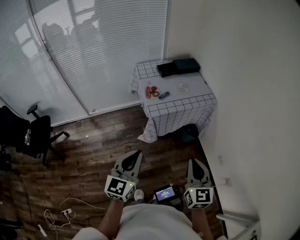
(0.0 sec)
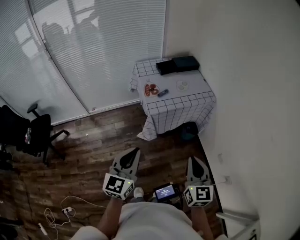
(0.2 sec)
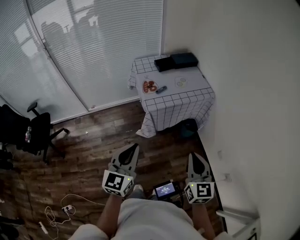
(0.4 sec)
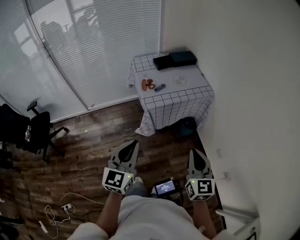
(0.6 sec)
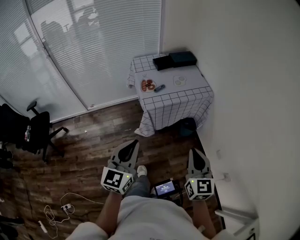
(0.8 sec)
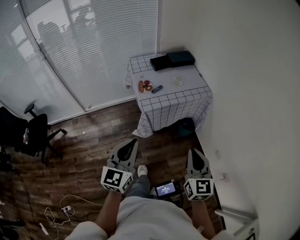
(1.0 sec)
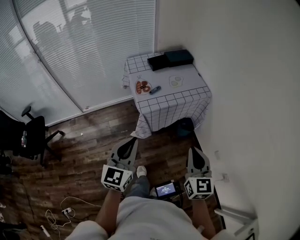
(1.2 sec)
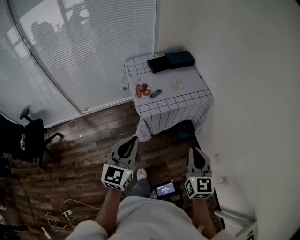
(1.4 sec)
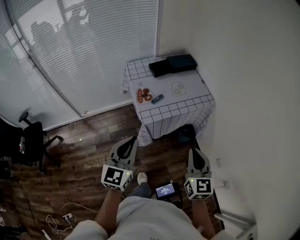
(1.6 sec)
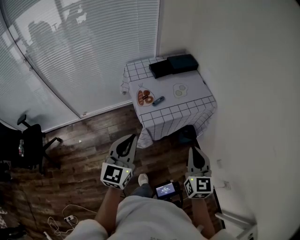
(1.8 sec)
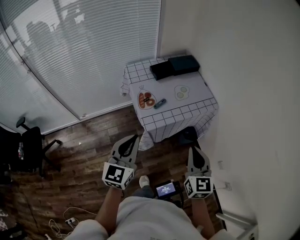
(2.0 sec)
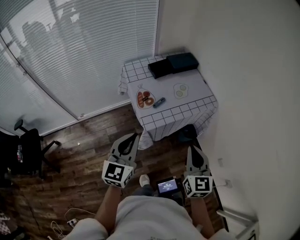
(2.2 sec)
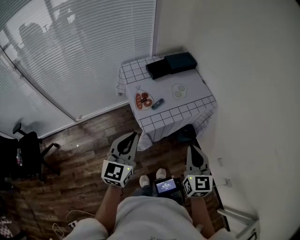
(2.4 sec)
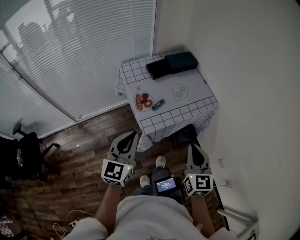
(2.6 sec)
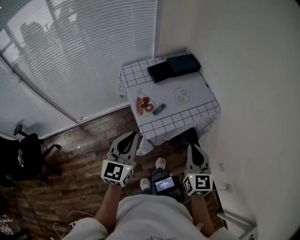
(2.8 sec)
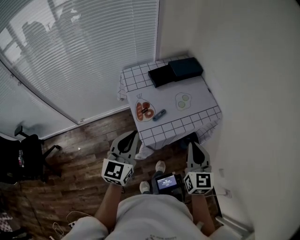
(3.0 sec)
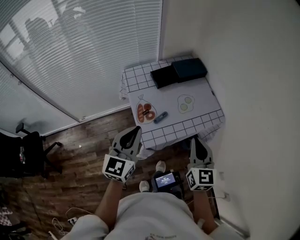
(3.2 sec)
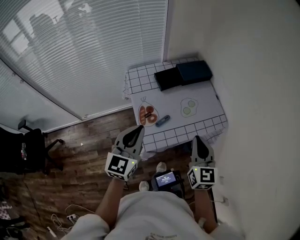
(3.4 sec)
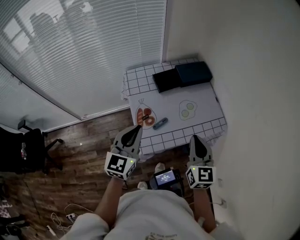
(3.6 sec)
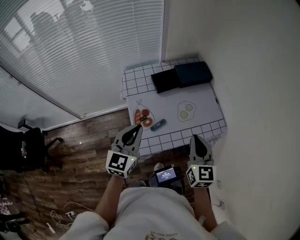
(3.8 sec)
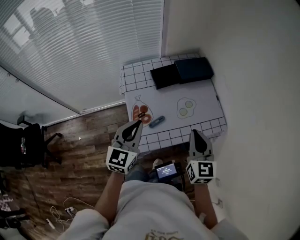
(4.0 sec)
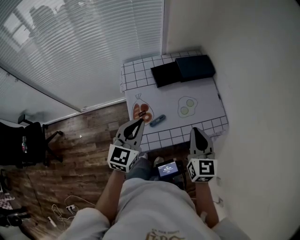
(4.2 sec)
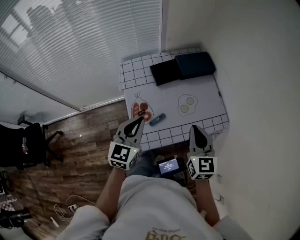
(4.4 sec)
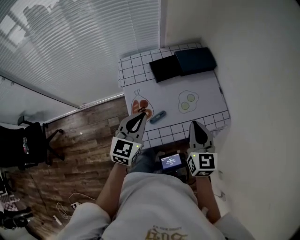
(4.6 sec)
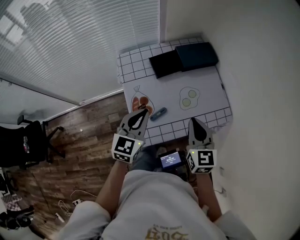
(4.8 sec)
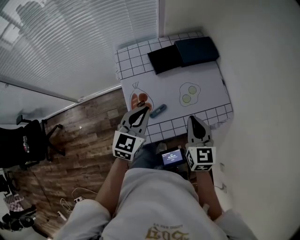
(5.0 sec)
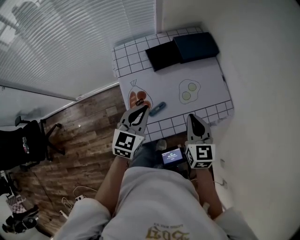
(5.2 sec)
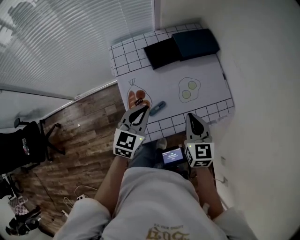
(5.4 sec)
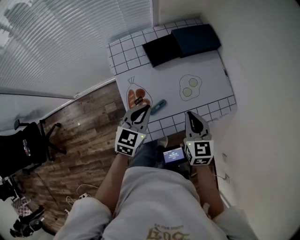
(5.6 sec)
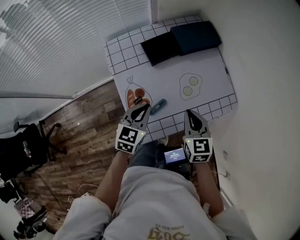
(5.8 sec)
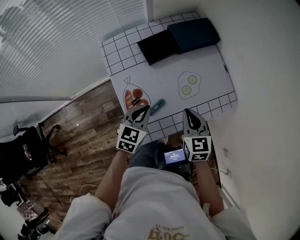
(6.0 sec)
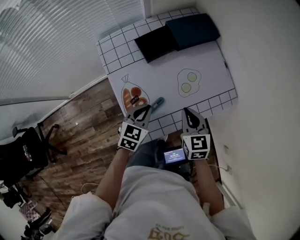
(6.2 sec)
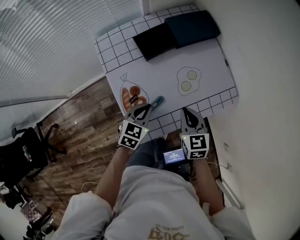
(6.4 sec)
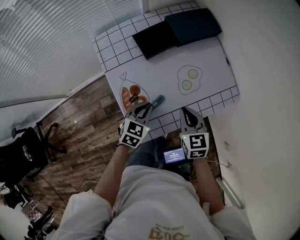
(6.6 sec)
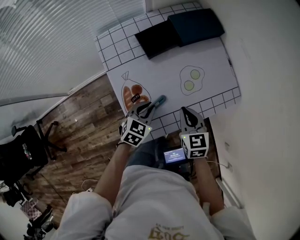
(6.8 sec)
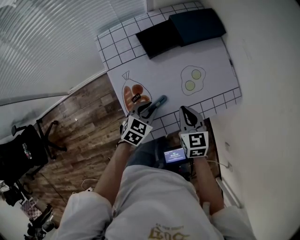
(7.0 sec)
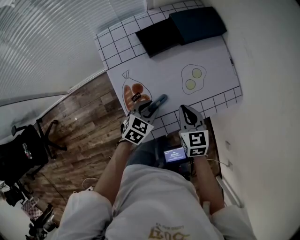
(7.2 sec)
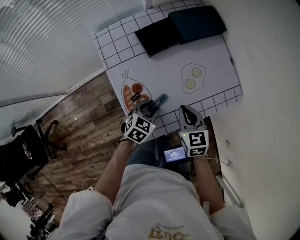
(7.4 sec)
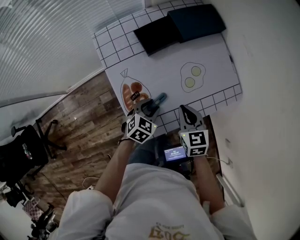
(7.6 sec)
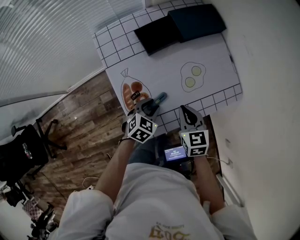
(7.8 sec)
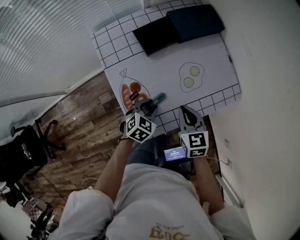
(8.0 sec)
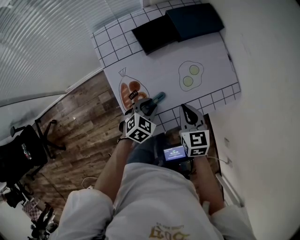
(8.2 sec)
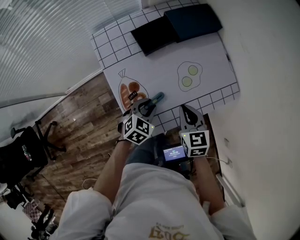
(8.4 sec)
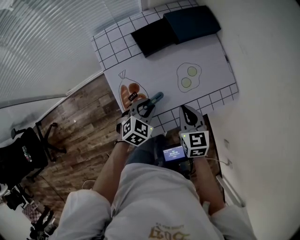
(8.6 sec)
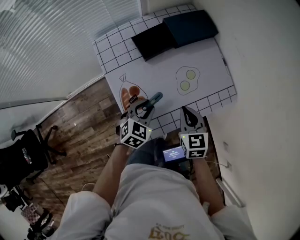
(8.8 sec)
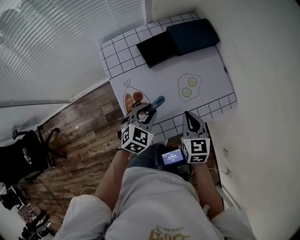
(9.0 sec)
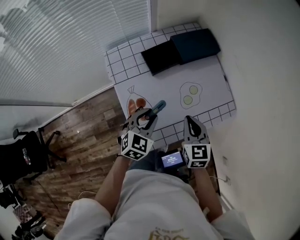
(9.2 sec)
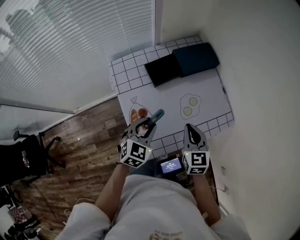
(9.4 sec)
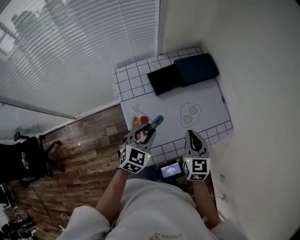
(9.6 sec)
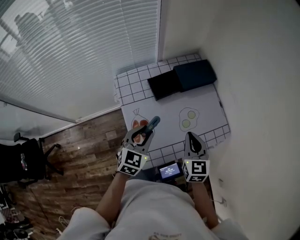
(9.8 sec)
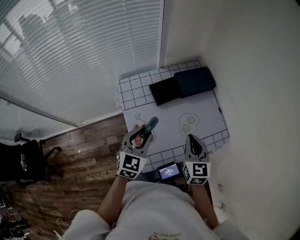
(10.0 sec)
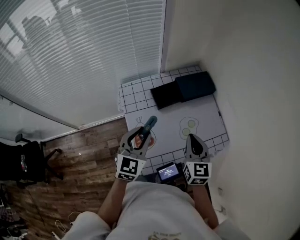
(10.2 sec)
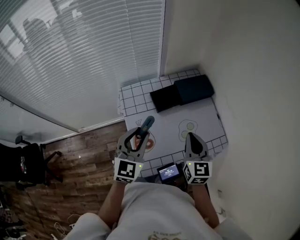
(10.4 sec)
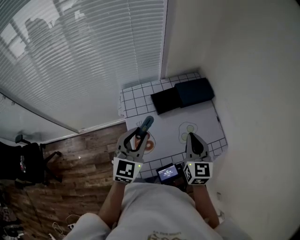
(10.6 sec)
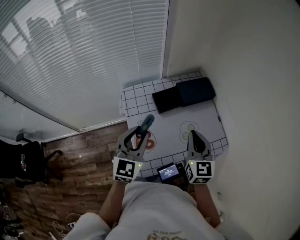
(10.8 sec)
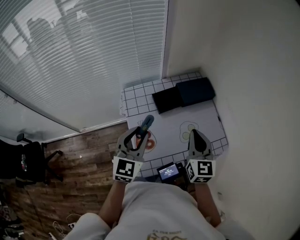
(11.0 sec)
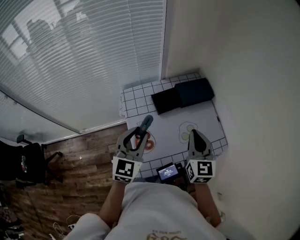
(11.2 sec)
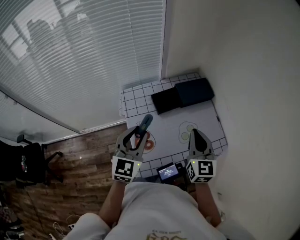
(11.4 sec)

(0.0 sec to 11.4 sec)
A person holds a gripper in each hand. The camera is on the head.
0.0 sec - 1.4 sec: Both grippers travel together forward, approximately 10 cm.
1.4 sec - 2.8 sec: Both grippers travel together forward and to the left, about 20 cm.
2.8 sec - 4.2 sec: Both grippers move forward, roughly 20 cm.
4.2 sec - 5.6 sec: The right gripper moves downward, some 10 cm. Meanwhile the left gripper travels downward and forward by roughly 15 cm.
5.6 sec - 7.2 sec: The right gripper heads downward, covering approximately 10 cm, while the left gripper is displaced downward by approximately 15 cm, changes its angle by roughly 20 degrees, and opens up.
7.2 sec - 8.6 sec: The grippers move only a little.
8.6 sec - 10.0 sec: Both grippers travel together upward, about 15 cm. The left gripper swivels some 30 degrees.
10.0 sec - 11.4 sec: Both grippers travel together upward, about 10 cm.

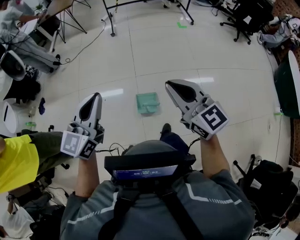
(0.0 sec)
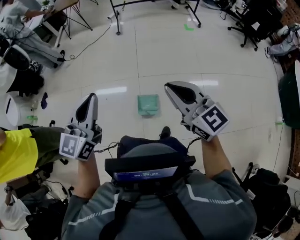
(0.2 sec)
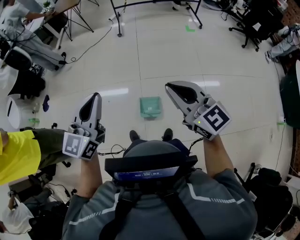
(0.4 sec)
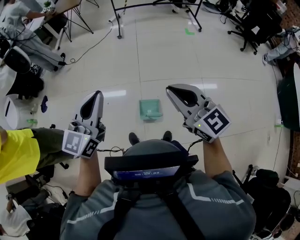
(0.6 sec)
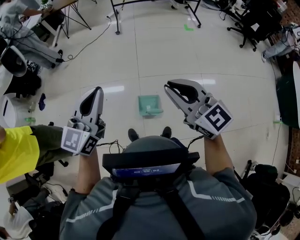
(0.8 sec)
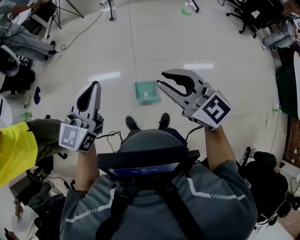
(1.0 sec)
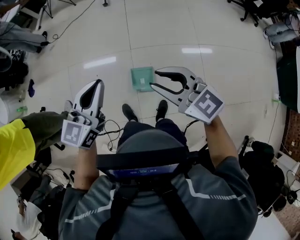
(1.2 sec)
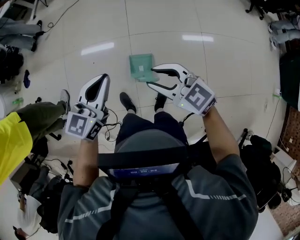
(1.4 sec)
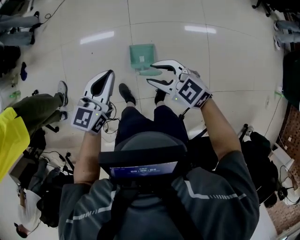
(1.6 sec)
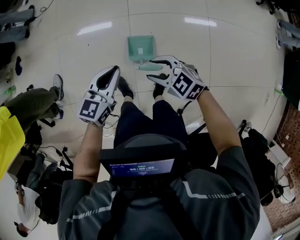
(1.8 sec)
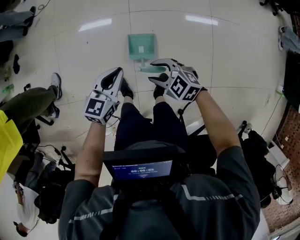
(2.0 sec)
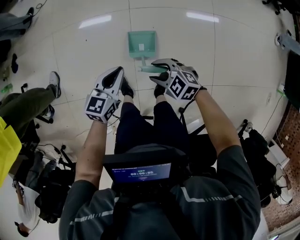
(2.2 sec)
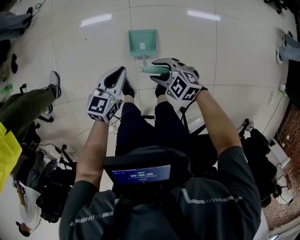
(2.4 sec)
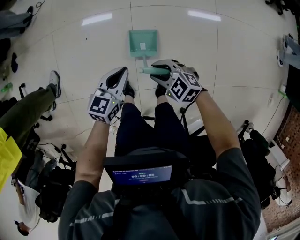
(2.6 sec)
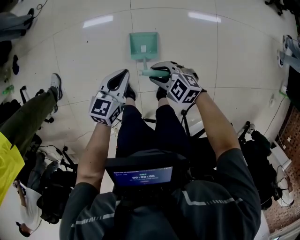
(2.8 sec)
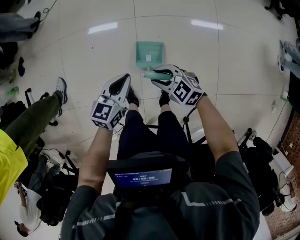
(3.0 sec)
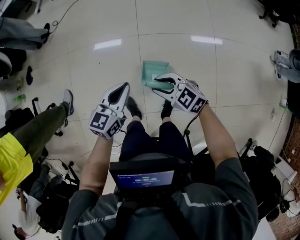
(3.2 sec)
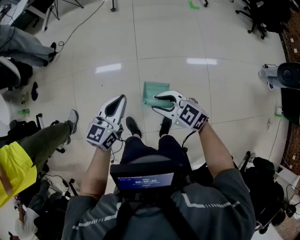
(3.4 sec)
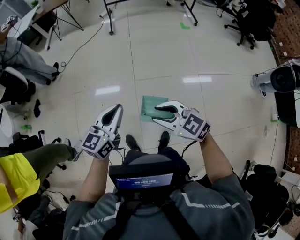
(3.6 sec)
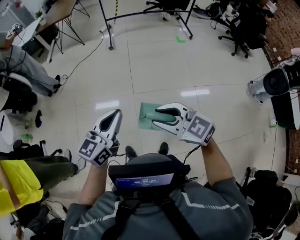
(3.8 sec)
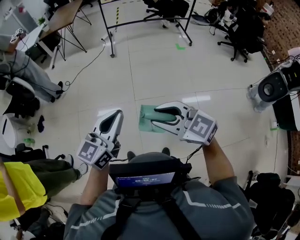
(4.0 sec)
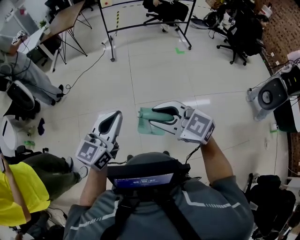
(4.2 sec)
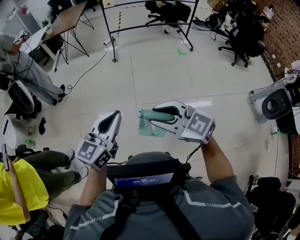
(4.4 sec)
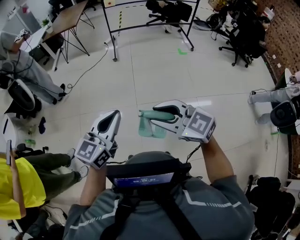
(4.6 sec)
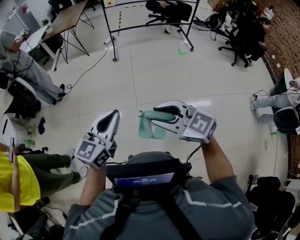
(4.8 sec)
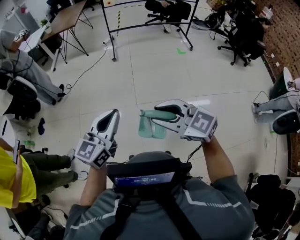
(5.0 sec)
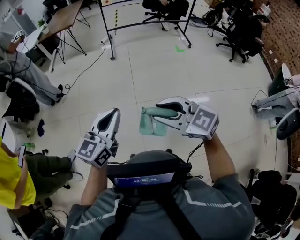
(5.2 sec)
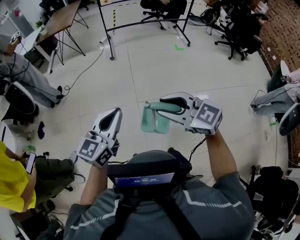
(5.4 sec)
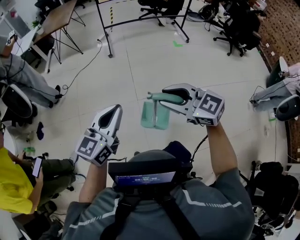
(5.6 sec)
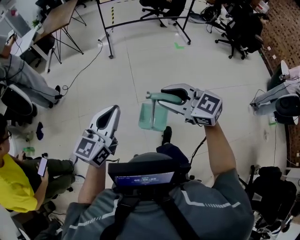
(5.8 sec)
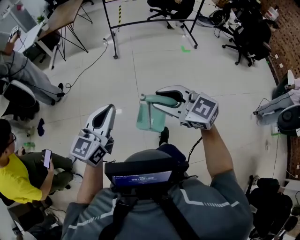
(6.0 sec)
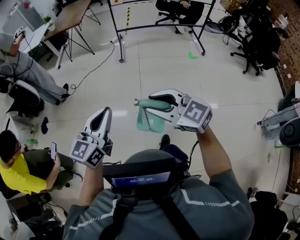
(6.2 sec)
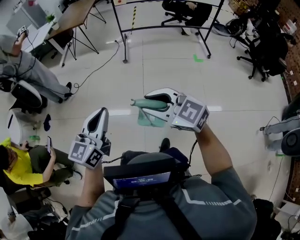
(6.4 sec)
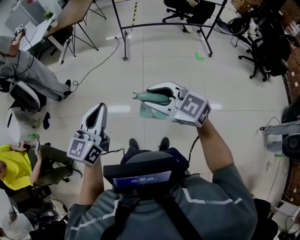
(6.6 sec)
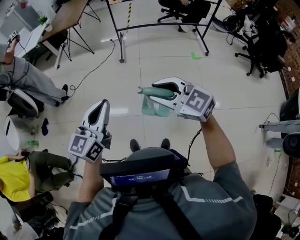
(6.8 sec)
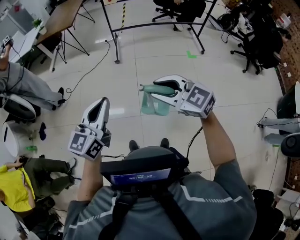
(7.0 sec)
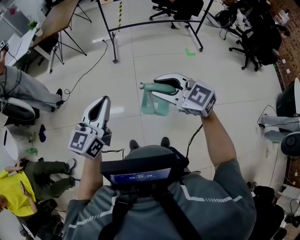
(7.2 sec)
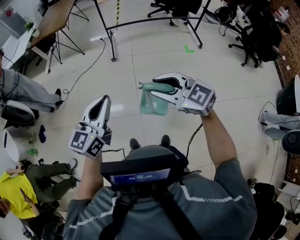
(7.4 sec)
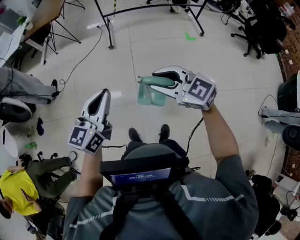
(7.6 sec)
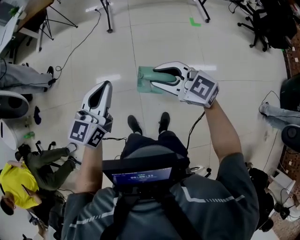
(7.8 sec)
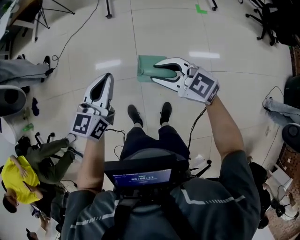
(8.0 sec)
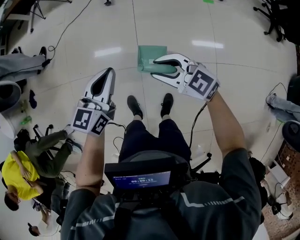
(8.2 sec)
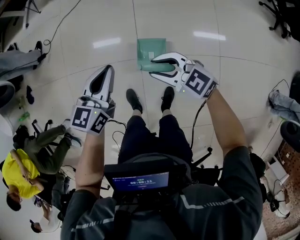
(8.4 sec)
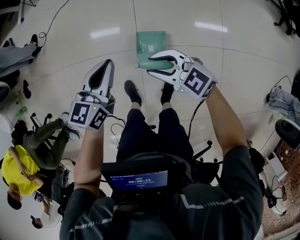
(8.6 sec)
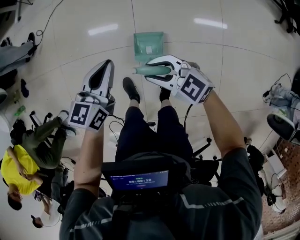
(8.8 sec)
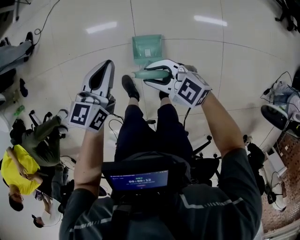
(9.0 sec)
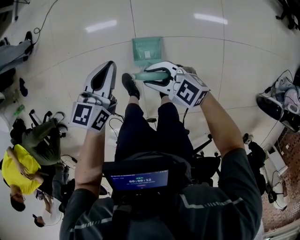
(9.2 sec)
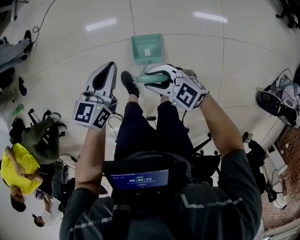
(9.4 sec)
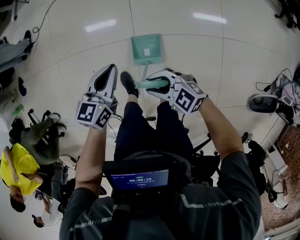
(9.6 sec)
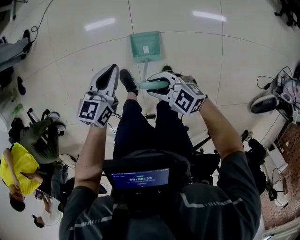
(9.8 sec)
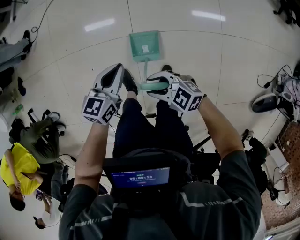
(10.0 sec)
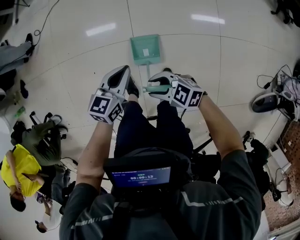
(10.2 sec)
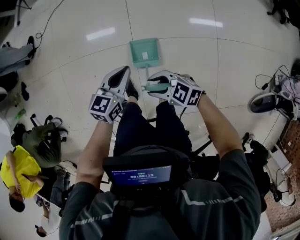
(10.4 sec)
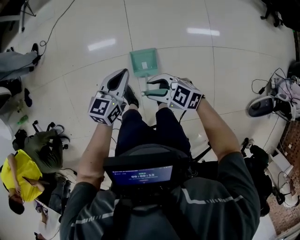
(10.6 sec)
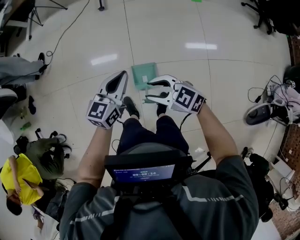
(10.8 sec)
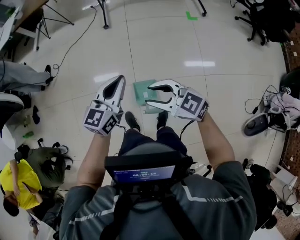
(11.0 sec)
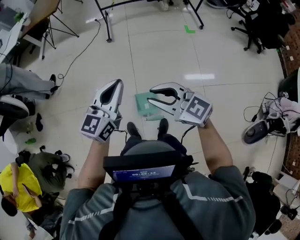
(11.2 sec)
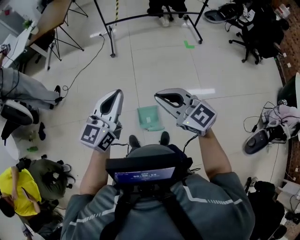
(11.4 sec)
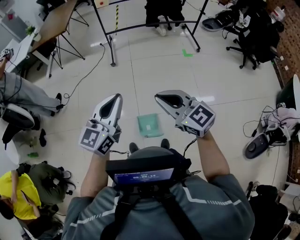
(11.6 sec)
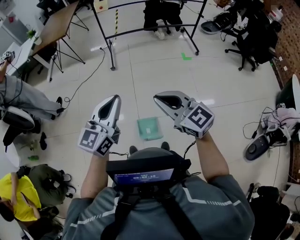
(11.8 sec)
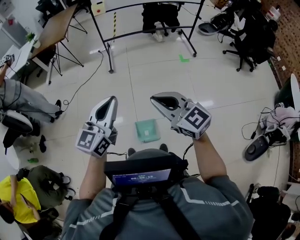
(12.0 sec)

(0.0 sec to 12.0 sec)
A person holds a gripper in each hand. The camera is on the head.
0.0 sec - 1.6 sec: Both grippers travel together downward and forward, about 40 cm. The left gripper changes its angle by some 20 degrees. Meanwhile the right gripper changes its angle by approximately 40 degrees, and opens.
1.6 sec - 3.0 sec: The grippers both shift downward by some 20 cm.
3.0 sec - 4.4 sec: Both grippers travel together upward, approximately 60 cm. The left gripper swivels roughly 30 degrees; the right gripper rotates roughly 20 degrees.
4.4 sec - 6.0 sec: Both grippers move forward, approximately 20 cm.
6.0 sec - 7.6 sec: Both grippers are carried forward and to the right, some 40 cm.
7.6 sec - 9.0 sec: The two grippers go some 50 cm downward. The left gripper changes its angle by roughly 20 degrees.
9.0 sec - 10.4 sec: The left gripper changes place by approximately 10 cm; the right gripper ends up some 15 cm from where it was.
10.4 sec - 12.0 sec: The grippers both shift upward by approximately 60 cm. The right gripper turns by about 50 degrees, and closes up; the left gripper rotates some 30 degrees.
